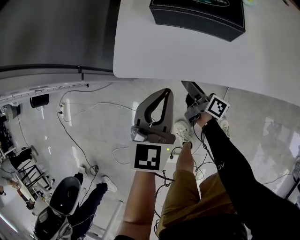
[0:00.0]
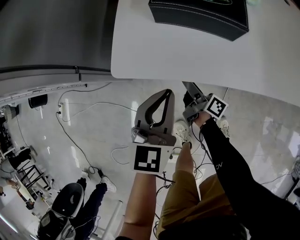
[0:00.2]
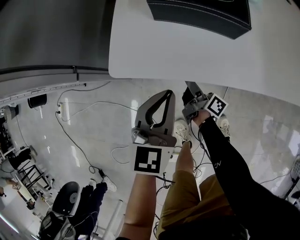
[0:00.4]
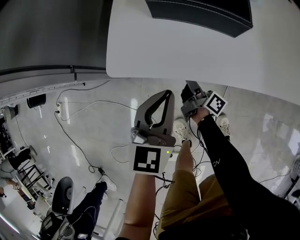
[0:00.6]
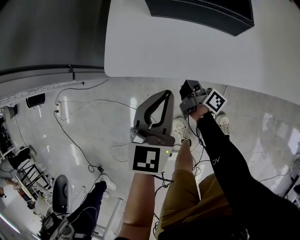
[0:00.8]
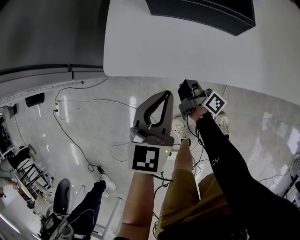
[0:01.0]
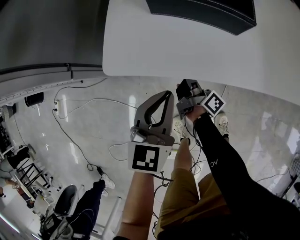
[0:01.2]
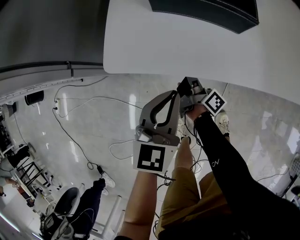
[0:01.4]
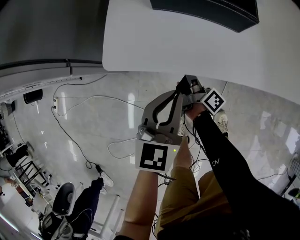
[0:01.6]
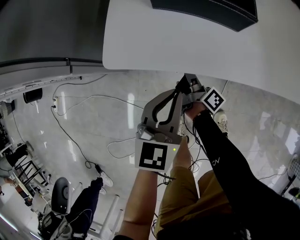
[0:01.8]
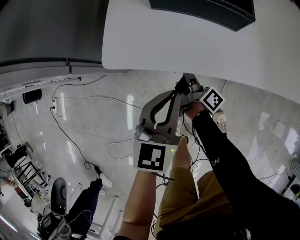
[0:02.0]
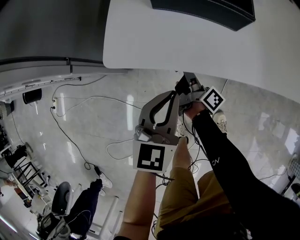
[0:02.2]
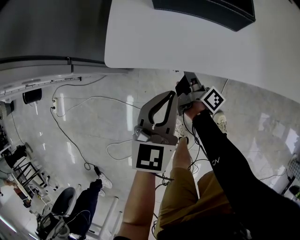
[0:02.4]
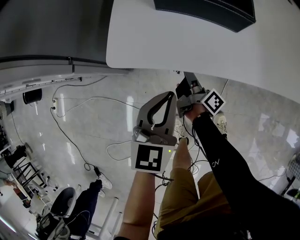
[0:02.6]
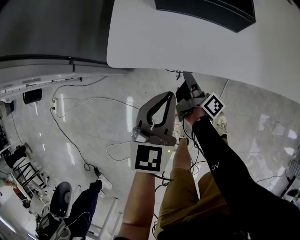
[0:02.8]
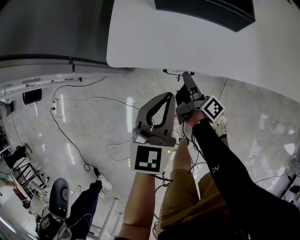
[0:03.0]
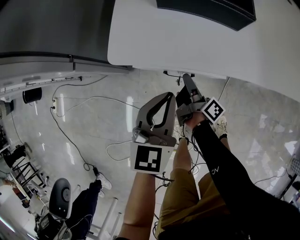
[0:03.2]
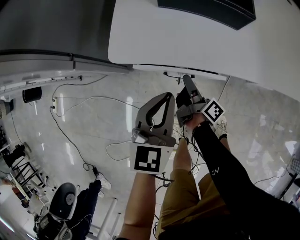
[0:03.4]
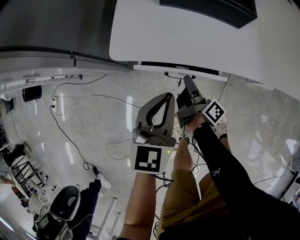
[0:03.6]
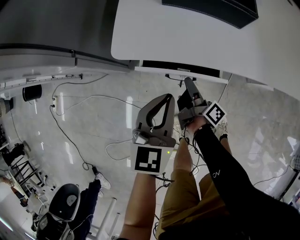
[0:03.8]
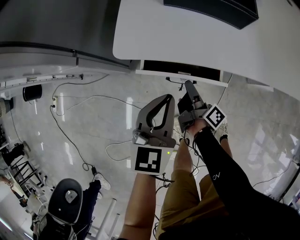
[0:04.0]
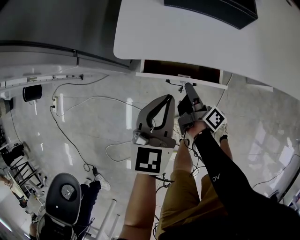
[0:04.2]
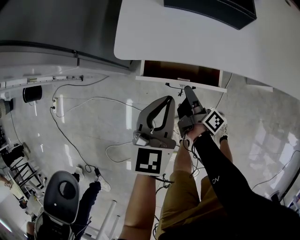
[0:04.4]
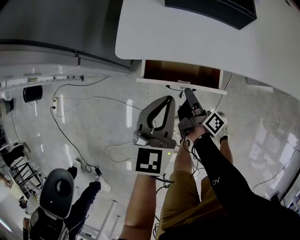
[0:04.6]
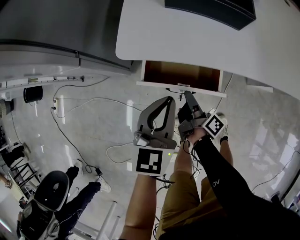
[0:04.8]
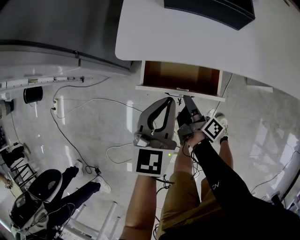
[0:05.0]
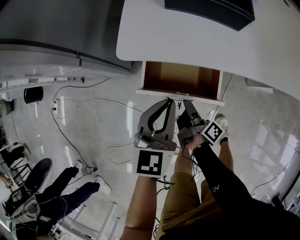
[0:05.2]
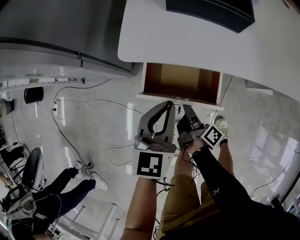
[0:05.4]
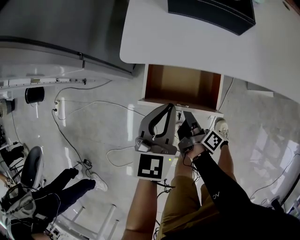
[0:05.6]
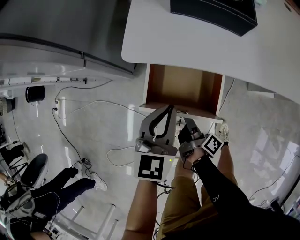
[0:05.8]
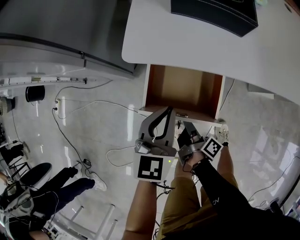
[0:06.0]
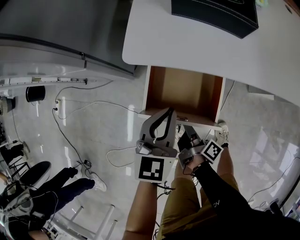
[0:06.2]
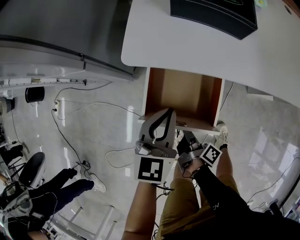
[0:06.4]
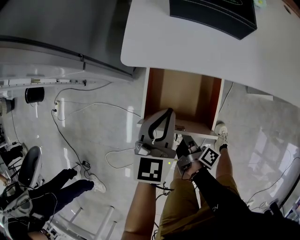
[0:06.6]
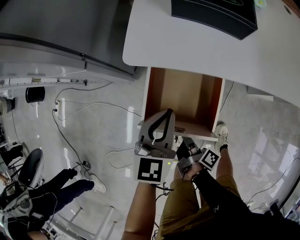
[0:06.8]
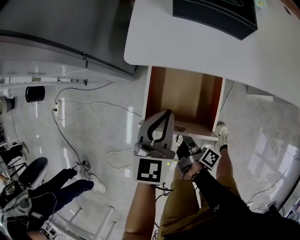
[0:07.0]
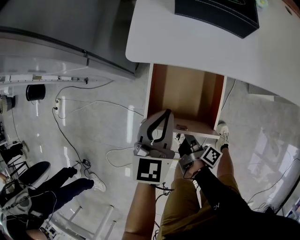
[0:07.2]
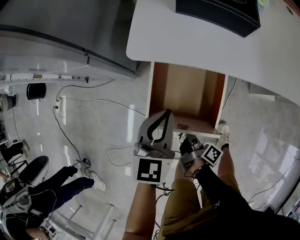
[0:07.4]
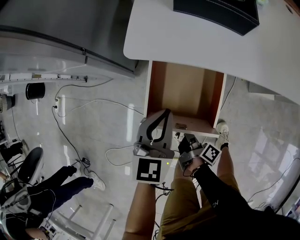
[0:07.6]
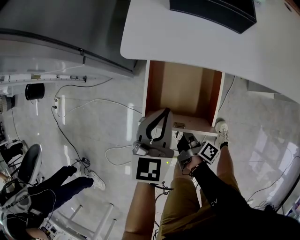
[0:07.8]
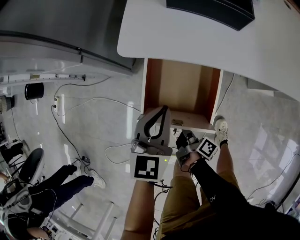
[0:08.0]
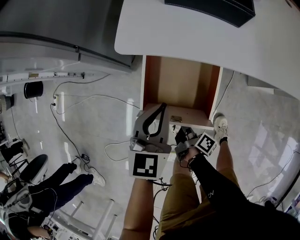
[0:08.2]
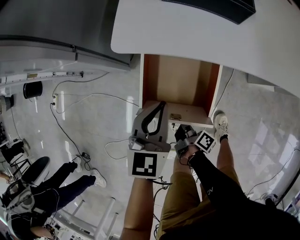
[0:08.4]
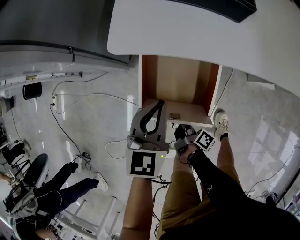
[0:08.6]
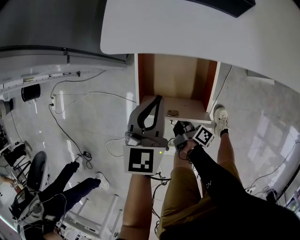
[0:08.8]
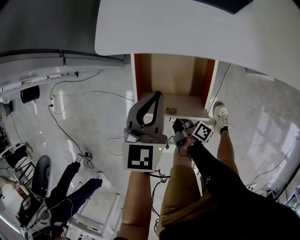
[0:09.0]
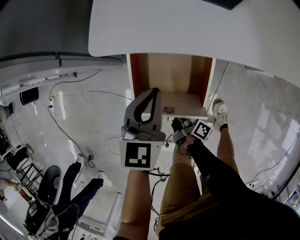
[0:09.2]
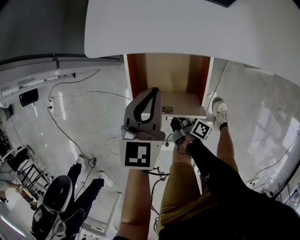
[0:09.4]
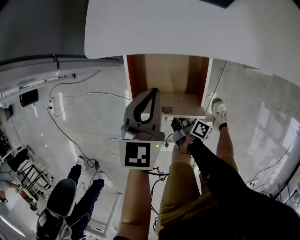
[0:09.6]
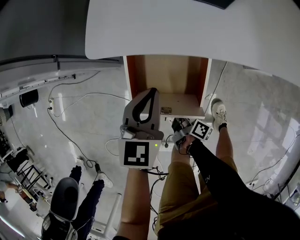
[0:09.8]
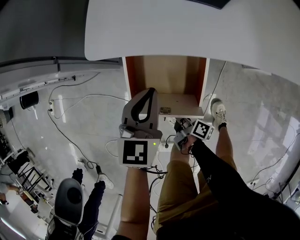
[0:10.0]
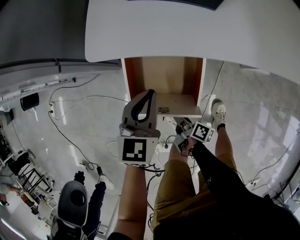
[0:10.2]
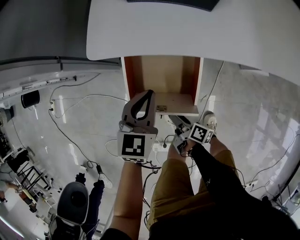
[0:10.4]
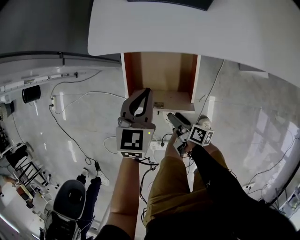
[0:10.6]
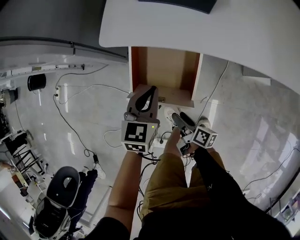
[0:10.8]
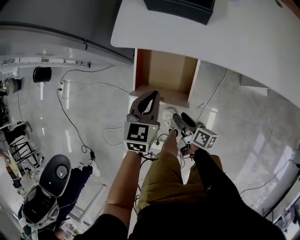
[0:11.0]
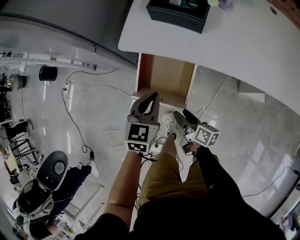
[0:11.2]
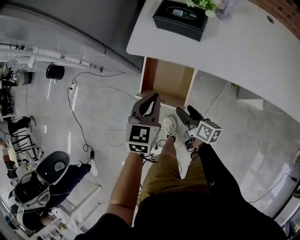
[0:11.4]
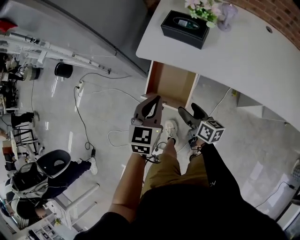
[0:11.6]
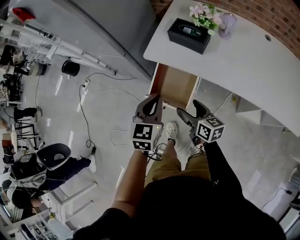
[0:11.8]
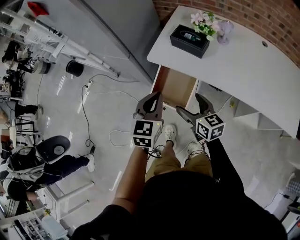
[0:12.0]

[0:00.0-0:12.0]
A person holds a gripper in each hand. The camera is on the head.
0:00.0 to 0:01.6: The left gripper moves approximately 5 cm. Meanwhile the right gripper closes.
0:01.6 to 0:03.0: The grippers stay close to where they were, moving slightly.
0:03.0 to 0:04.4: The right gripper goes some 5 cm backward.
0:04.4 to 0:06.0: The right gripper shifts approximately 10 cm backward.
0:06.0 to 0:07.6: The right gripper ends up approximately 5 cm from where it was.
0:07.6 to 0:09.0: The right gripper travels downward by roughly 5 cm.
0:09.0 to 0:10.4: The right gripper opens up.
0:10.4 to 0:12.0: The left gripper moves upward and backward, about 30 cm, and turns by approximately 30 degrees; the right gripper goes about 40 cm upward, and rolls counterclockwise, seen from behind, by approximately 70 degrees.

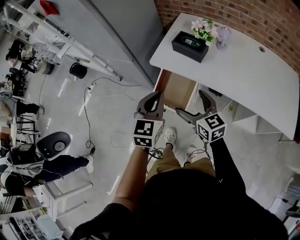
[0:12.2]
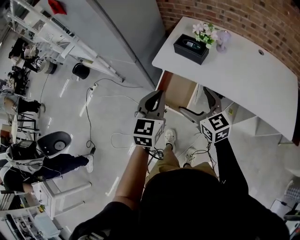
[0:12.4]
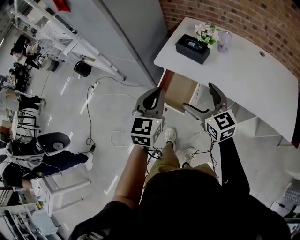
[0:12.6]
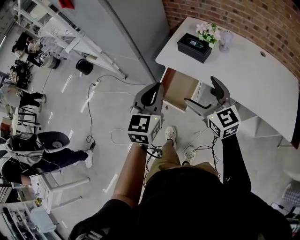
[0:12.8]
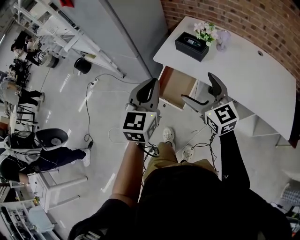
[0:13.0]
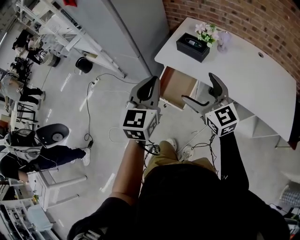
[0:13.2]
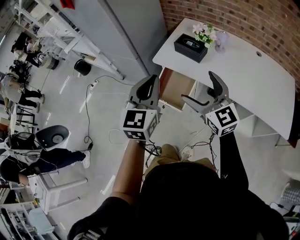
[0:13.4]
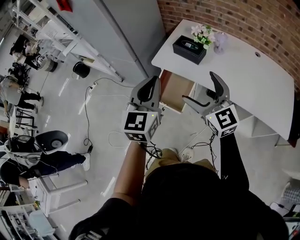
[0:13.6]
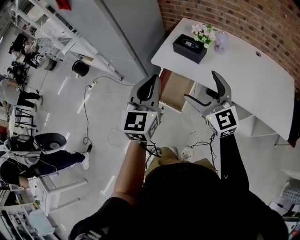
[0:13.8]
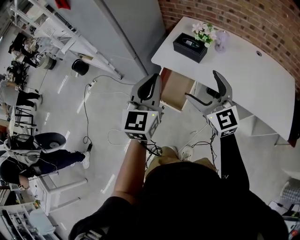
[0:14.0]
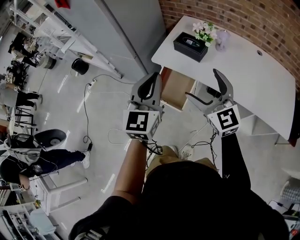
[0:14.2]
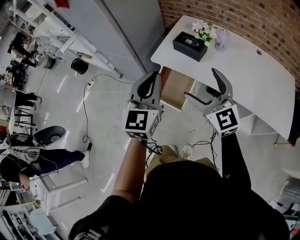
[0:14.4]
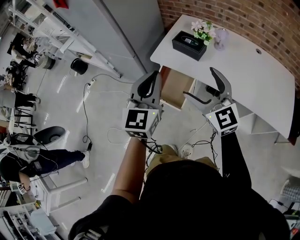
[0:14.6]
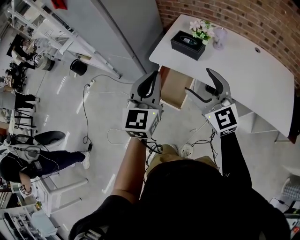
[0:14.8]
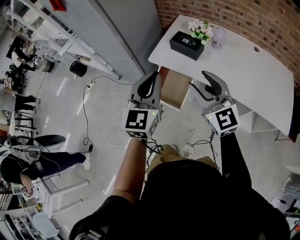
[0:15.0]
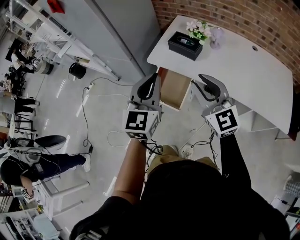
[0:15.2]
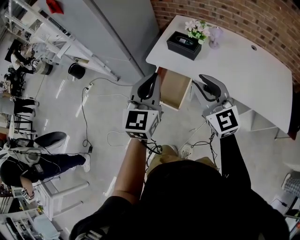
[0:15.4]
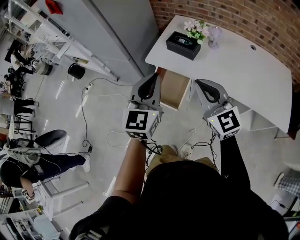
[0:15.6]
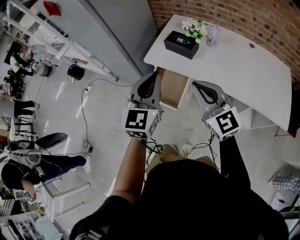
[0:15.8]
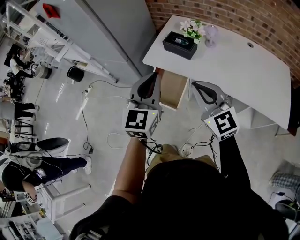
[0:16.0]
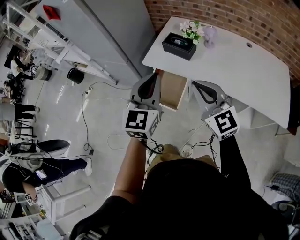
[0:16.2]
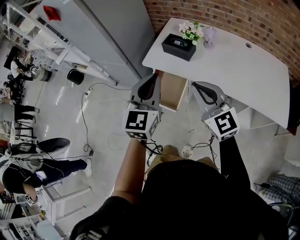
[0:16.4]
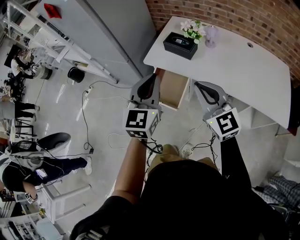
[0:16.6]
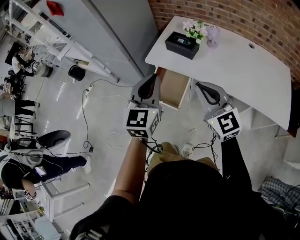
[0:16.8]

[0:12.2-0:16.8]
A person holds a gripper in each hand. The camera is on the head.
0:12.2 to 0:13.8: Both grippers move upward, roughly 15 cm. The right gripper rotates approximately 30 degrees.
0:13.8 to 0:15.2: The right gripper closes.
0:15.2 to 0:16.8: There are only small adjustments of the grippers.

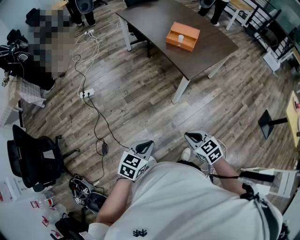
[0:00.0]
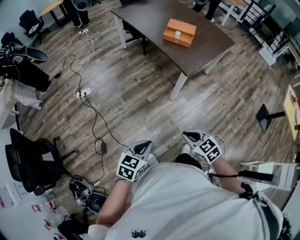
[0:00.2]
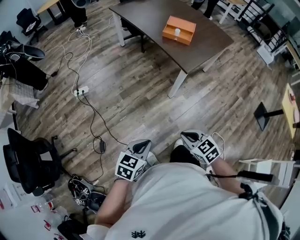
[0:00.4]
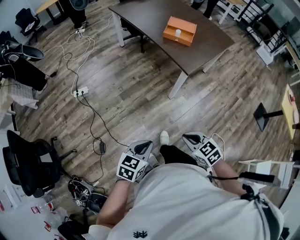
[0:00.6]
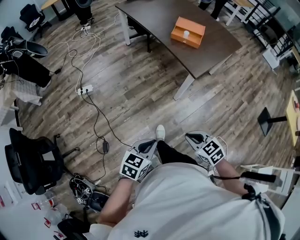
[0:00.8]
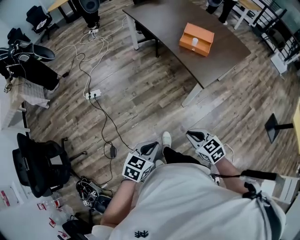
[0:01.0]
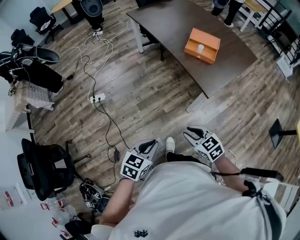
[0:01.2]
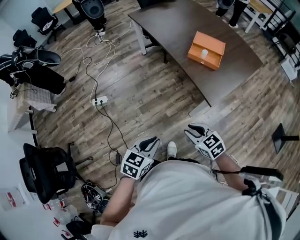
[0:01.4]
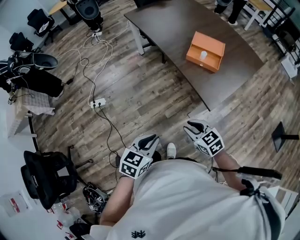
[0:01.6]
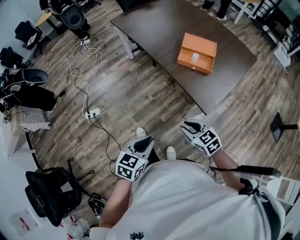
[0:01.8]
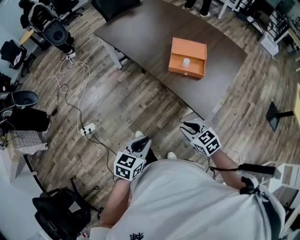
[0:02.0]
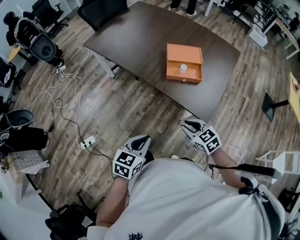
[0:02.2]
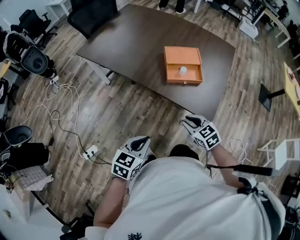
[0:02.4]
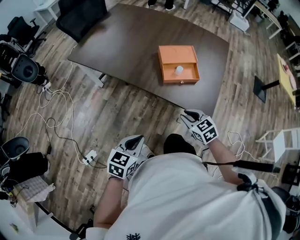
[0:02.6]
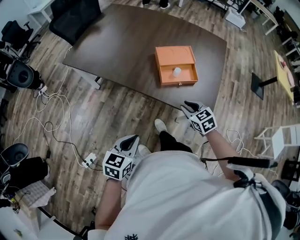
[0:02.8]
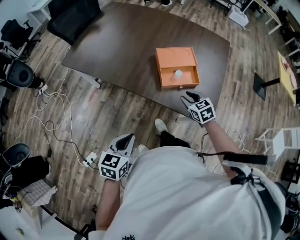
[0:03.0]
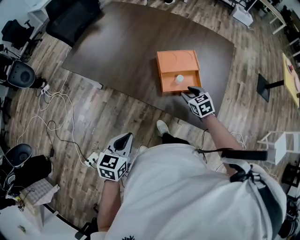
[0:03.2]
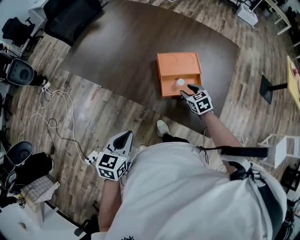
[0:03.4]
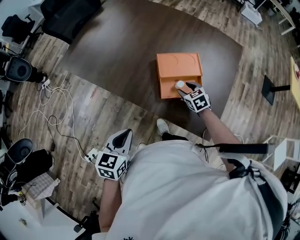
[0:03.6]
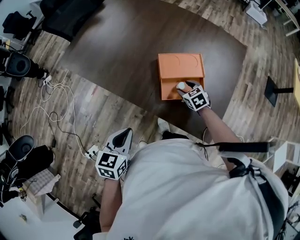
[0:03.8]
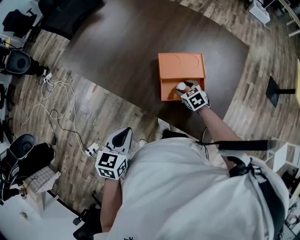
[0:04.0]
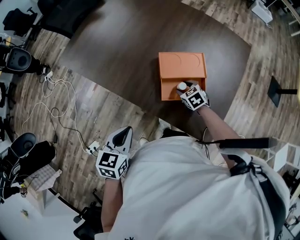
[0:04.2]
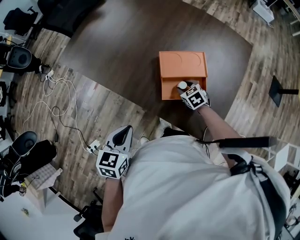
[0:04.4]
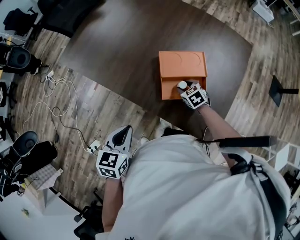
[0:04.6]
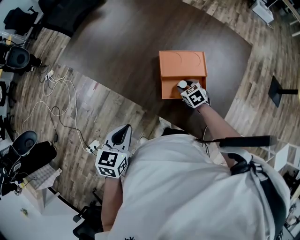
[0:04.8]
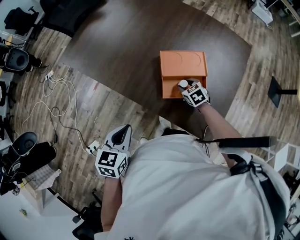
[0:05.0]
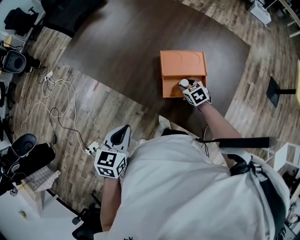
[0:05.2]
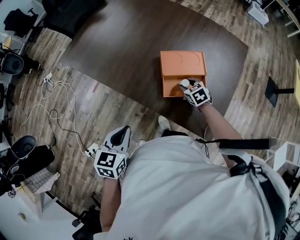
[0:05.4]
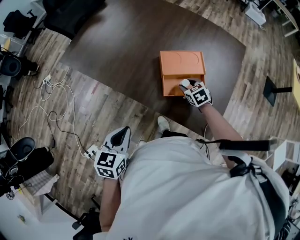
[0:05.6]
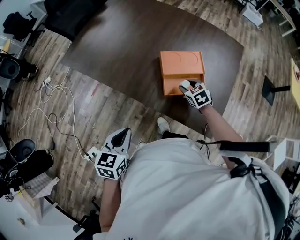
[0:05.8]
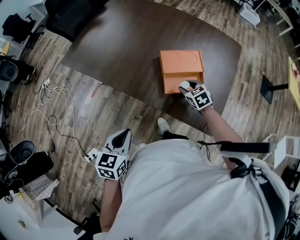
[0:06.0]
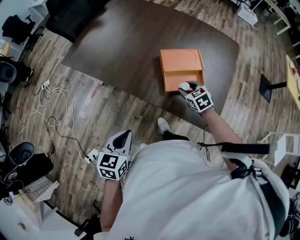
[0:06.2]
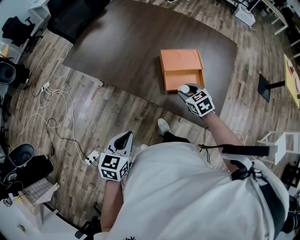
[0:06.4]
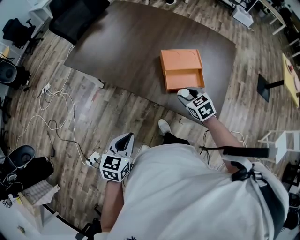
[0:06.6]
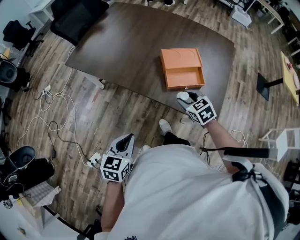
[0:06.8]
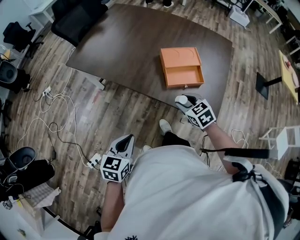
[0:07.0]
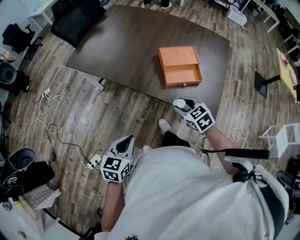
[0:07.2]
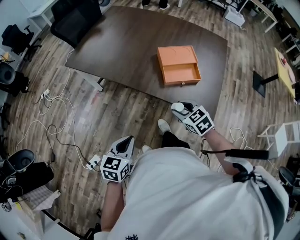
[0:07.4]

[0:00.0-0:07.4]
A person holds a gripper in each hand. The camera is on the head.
0:00.0 to 0:01.4: The two grippers go some 25 cm forward. The right gripper opens its fingers.
0:01.4 to 0:03.0: The pair of grippers is taken roughly 50 cm. The right gripper changes its angle by roughly 50 degrees, while the left gripper turns by about 20 degrees.
0:03.0 to 0:04.4: The right gripper shifts approximately 20 cm forward and downward; the left gripper is displaced forward by some 15 cm.
0:04.4 to 0:06.0: The left gripper travels backward and to the left by approximately 10 cm; the right gripper goes approximately 10 cm upward and backward.
0:06.0 to 0:07.4: The left gripper heads backward, covering approximately 15 cm, while the right gripper goes about 25 cm backward and to the left.
